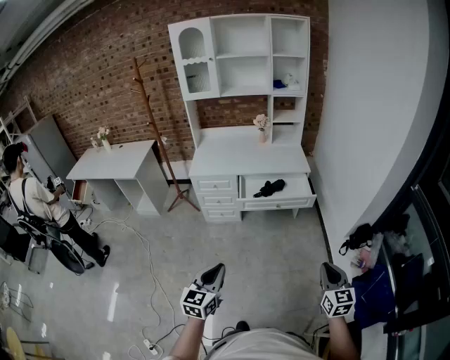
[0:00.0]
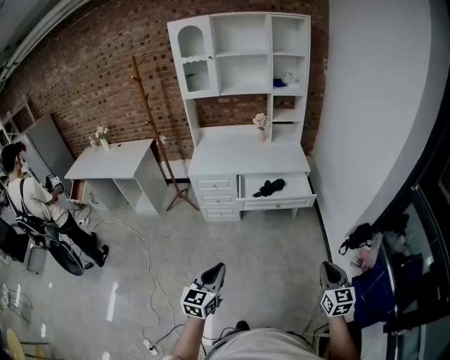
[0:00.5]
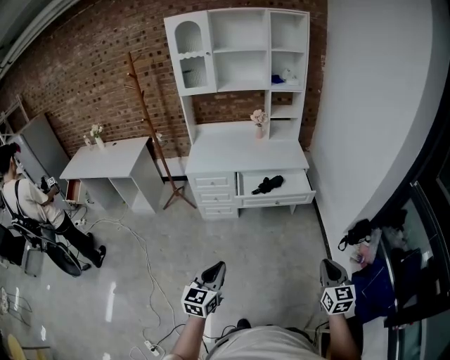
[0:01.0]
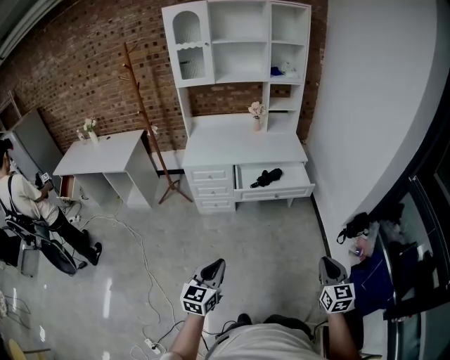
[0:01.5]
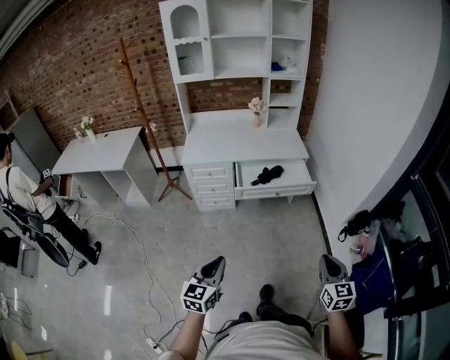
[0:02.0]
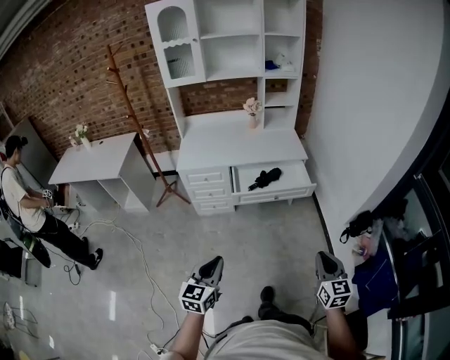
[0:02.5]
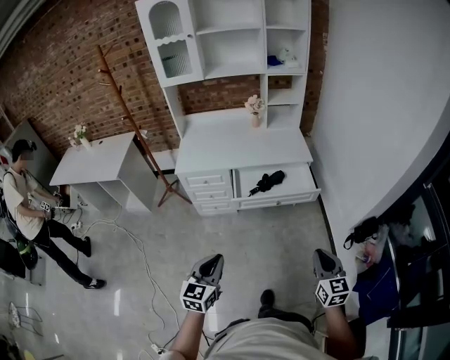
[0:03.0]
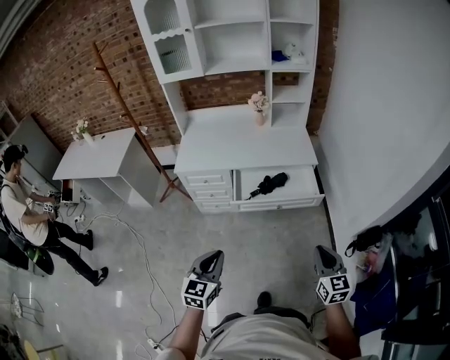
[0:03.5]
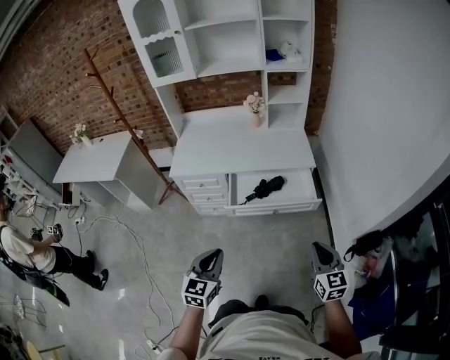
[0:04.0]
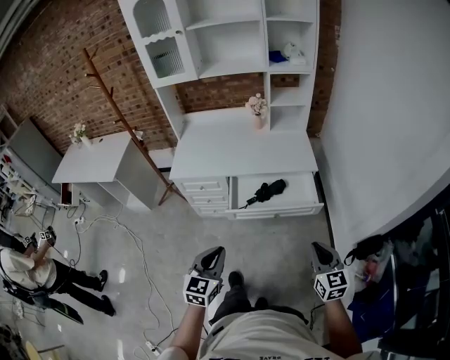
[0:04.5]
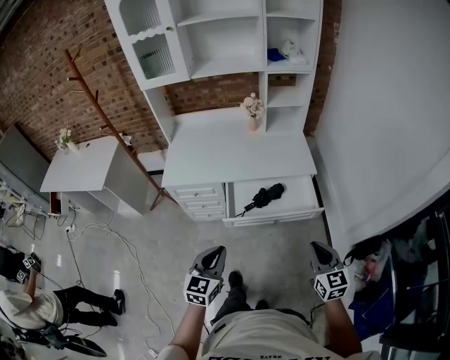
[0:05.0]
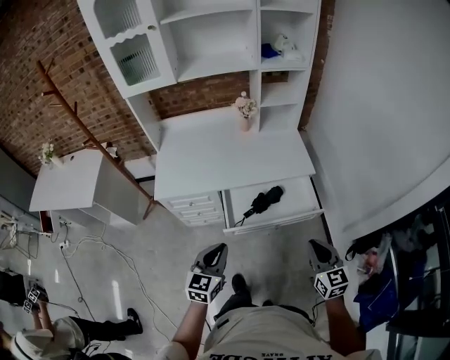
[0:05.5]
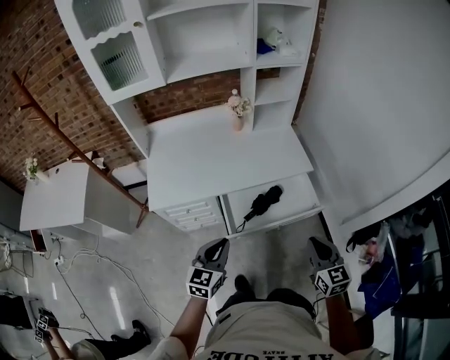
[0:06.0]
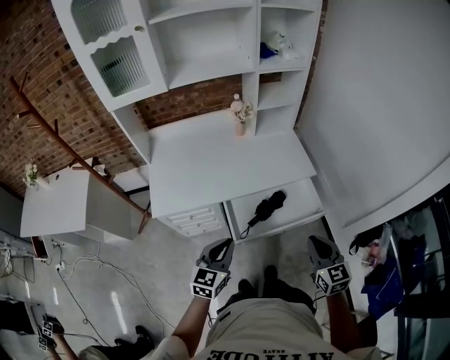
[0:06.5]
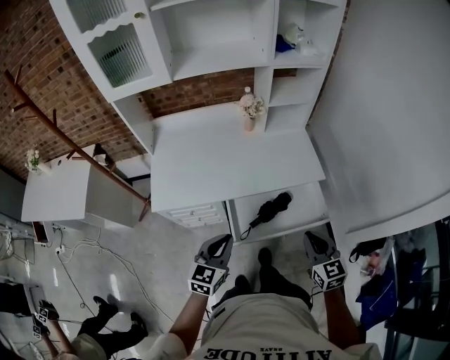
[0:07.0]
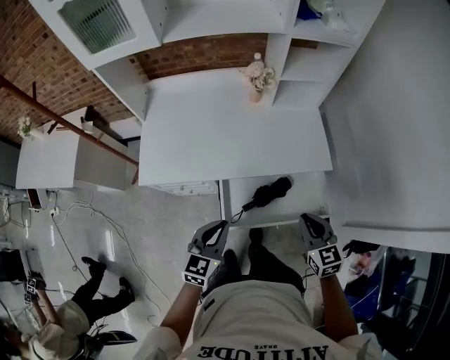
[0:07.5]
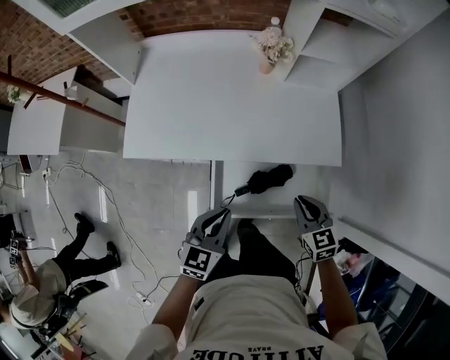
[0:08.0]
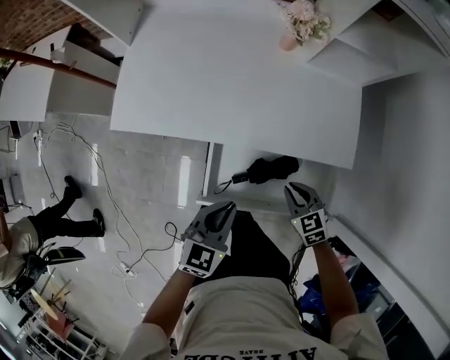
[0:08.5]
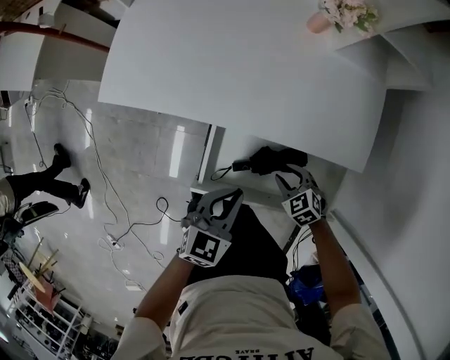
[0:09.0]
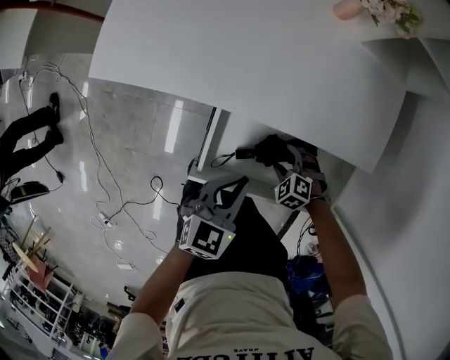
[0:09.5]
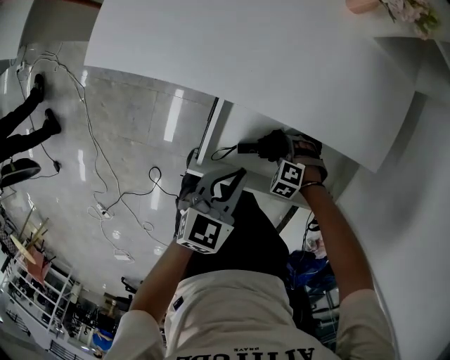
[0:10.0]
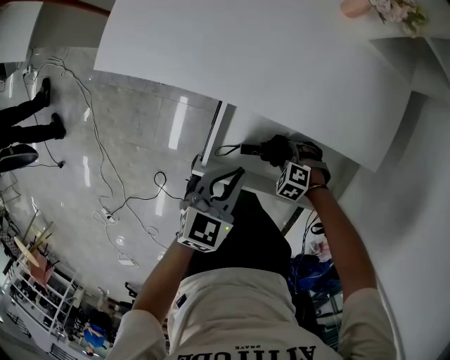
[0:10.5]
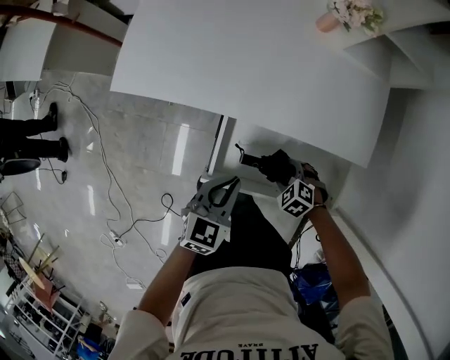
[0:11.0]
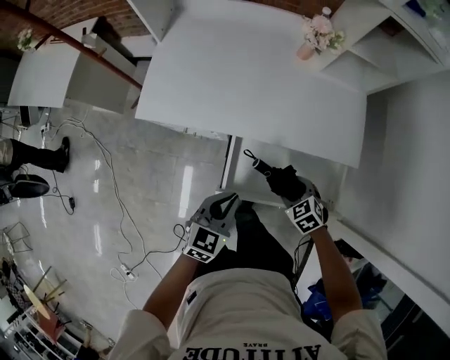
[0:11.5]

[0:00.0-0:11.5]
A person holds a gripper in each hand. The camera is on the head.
0:00.0 to 0:02.0: The two grippers go approximately 5 cm to the left.
0:02.0 to 0:04.0: Both grippers move forward, about 25 cm.
0:04.0 to 0:06.0: The right gripper shifts roughly 20 cm forward and to the left. Meanwhile the left gripper goes some 25 cm forward.
0:06.0 to 0:07.5: The right gripper is displaced forward by some 20 cm, while the left gripper shifts roughly 10 cm forward.
0:07.5 to 0:09.5: The left gripper travels downward by approximately 20 cm. The right gripper shifts some 40 cm downward, angles its fingers downward, by some 40 degrees, and opens up.
0:09.5 to 0:11.5: The left gripper shifts by some 15 cm, while the right gripper goes about 20 cm upward, and rotates roughly 30 degrees.

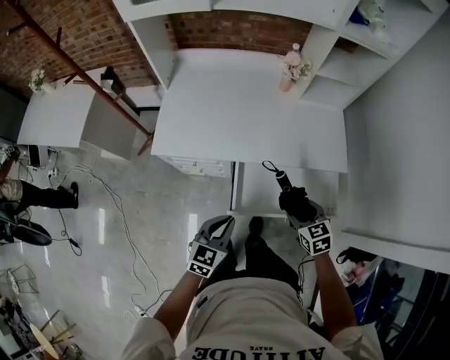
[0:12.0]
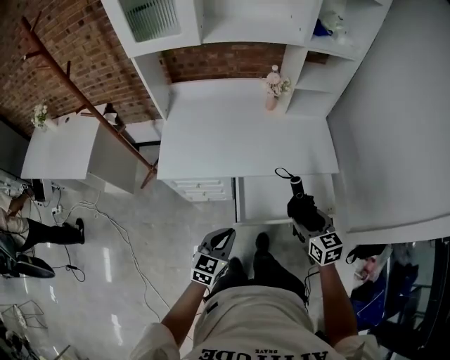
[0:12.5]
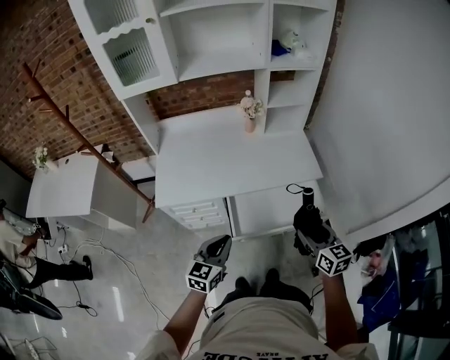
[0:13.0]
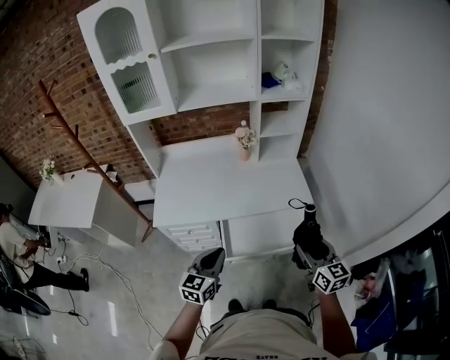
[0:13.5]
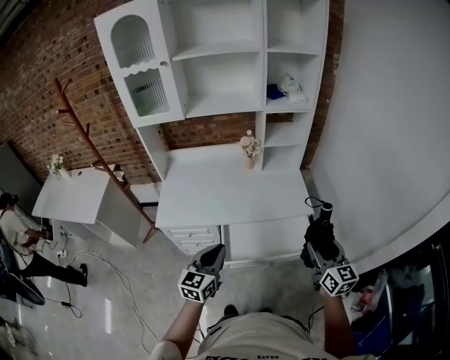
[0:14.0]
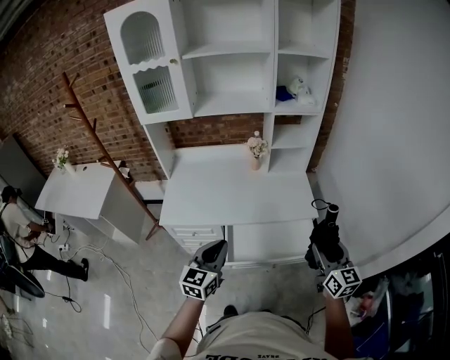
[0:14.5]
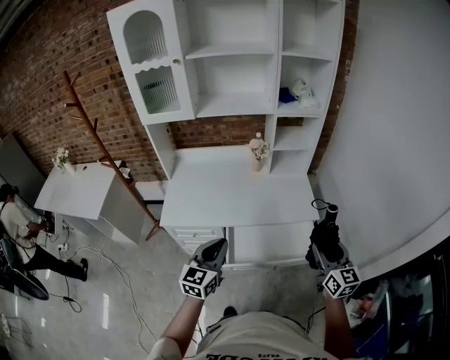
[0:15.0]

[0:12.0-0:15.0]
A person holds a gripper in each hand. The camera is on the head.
0:12.0 to 0:13.5: The left gripper goes some 15 cm upward. Meanwhile the right gripper heads upward, to the right and backward, covering approximately 25 cm, and points its fingers about 30 degrees further upward.
0:13.5 to 0:15.0: The grippers both shift upward by roughly 5 cm.

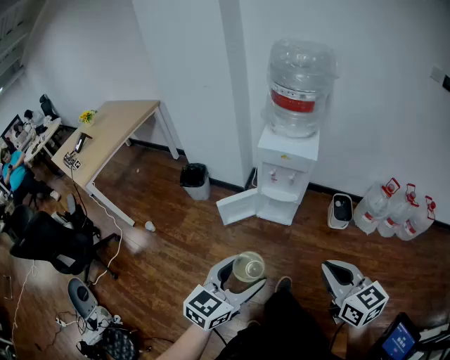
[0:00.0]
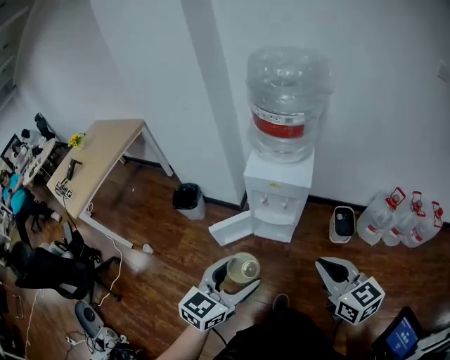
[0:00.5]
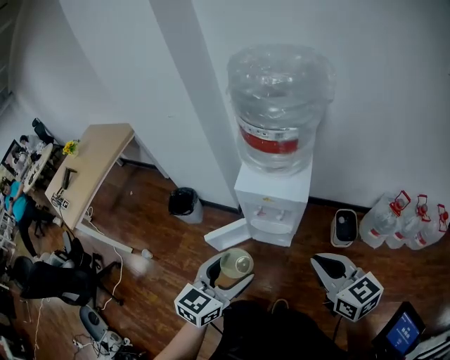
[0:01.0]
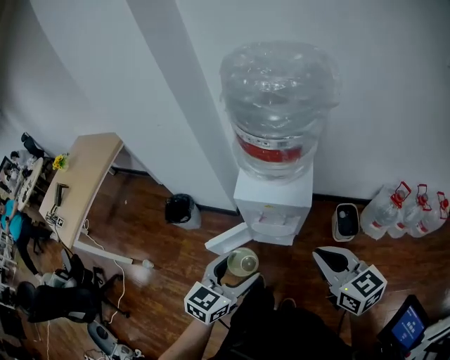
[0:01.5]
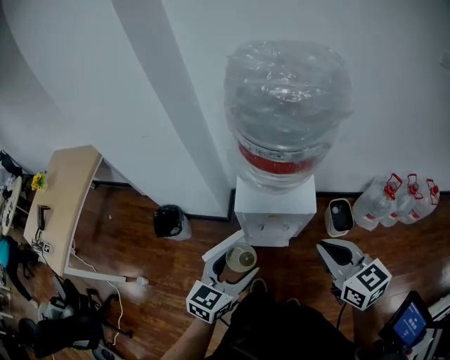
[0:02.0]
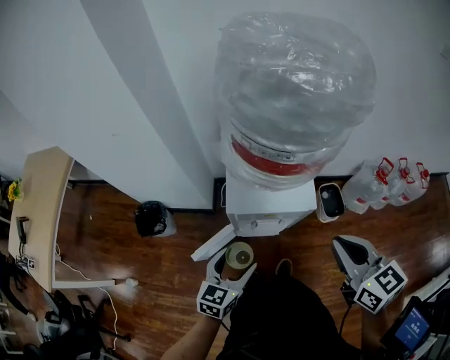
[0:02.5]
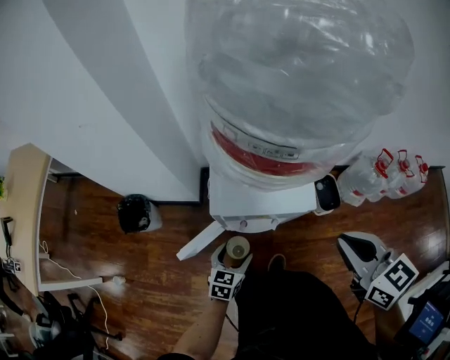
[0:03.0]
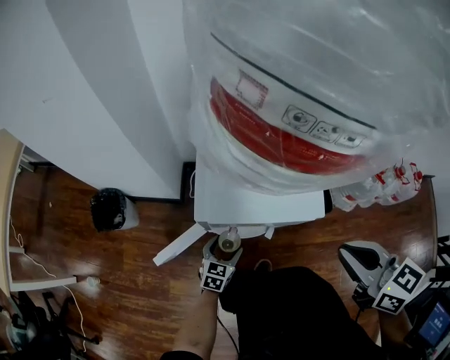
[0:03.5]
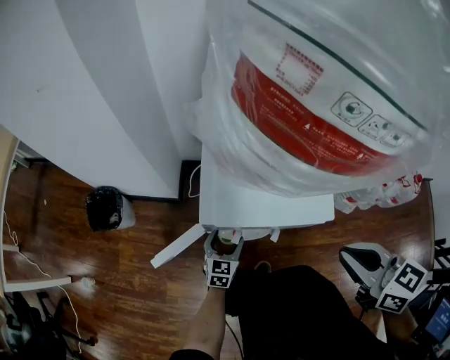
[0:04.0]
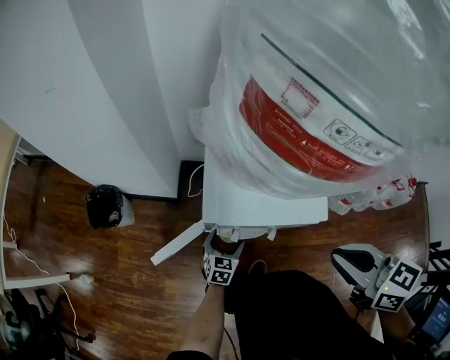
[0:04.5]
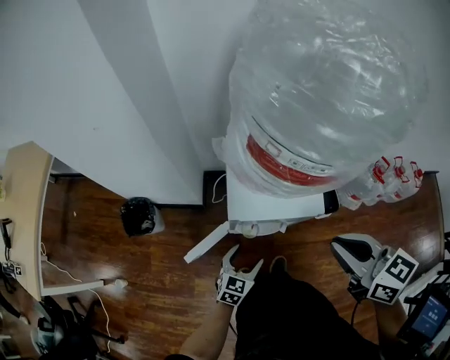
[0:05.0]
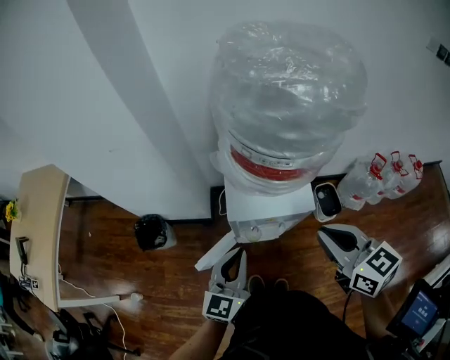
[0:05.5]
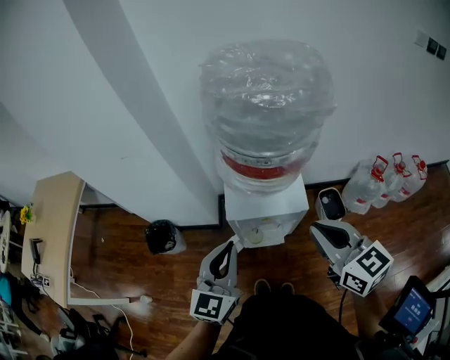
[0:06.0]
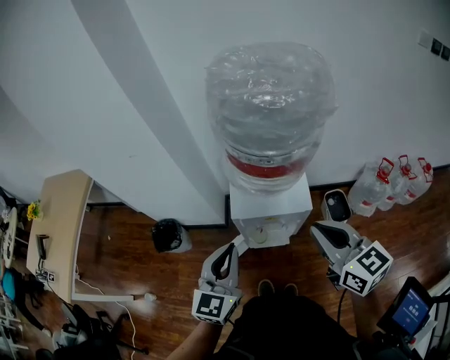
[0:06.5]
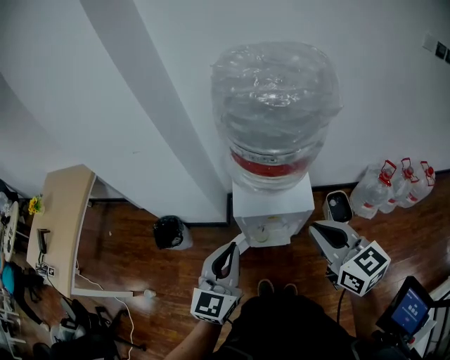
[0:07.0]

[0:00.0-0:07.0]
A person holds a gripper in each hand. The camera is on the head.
0:00.0 to 0:02.0: The two grippers travel together, forward, approximately 40 cm.
0:02.0 to 0:03.5: The left gripper moves downward, approximately 40 cm, while the right gripper goes about 15 cm downward and forward.
0:03.5 to 0:05.0: The left gripper is displaced upward by approximately 15 cm, while the right gripper goes some 10 cm upward and to the left.
0:05.0 to 0:07.0: The left gripper goes approximately 35 cm upward, swivels roughly 30 degrees, and closes up, while the right gripper moves upward, about 5 cm.

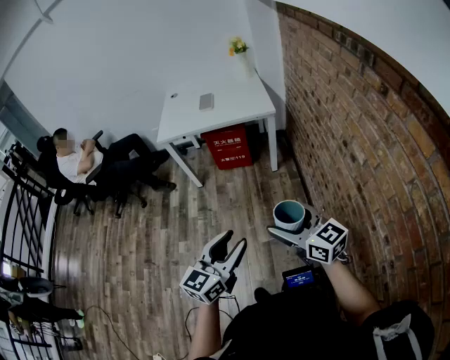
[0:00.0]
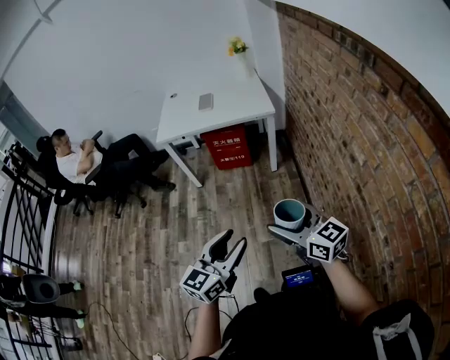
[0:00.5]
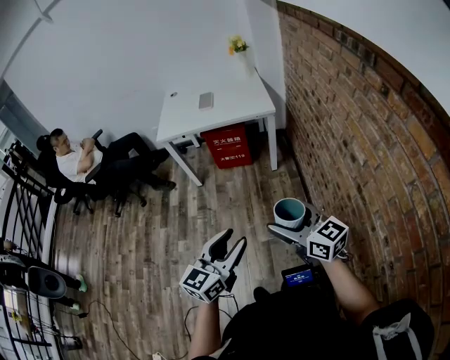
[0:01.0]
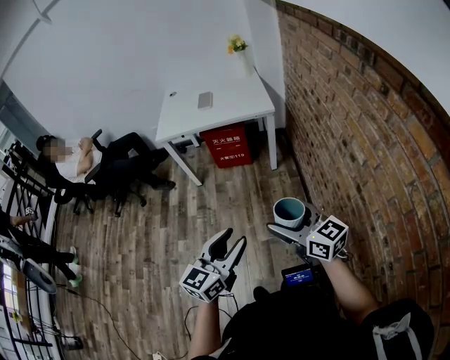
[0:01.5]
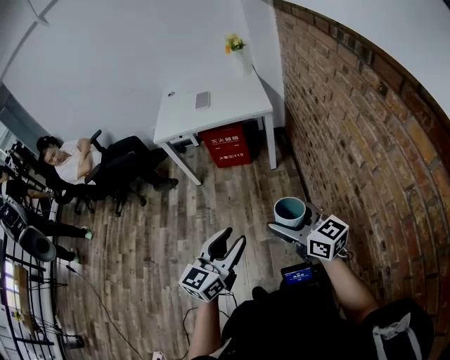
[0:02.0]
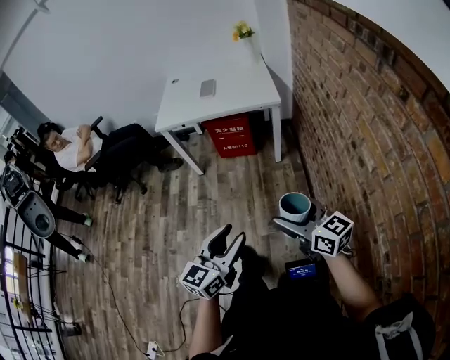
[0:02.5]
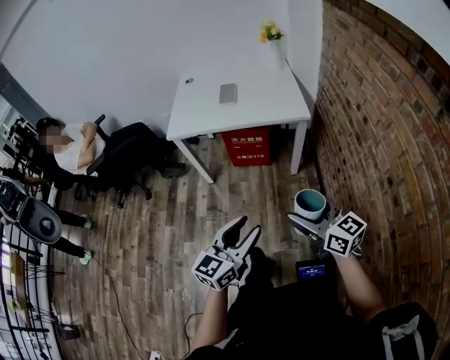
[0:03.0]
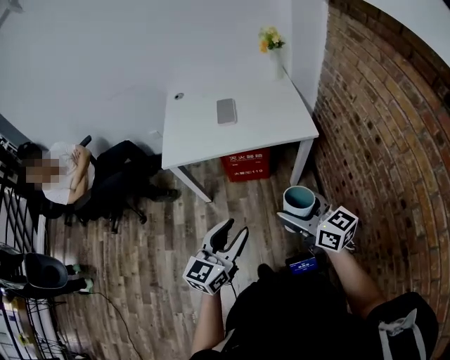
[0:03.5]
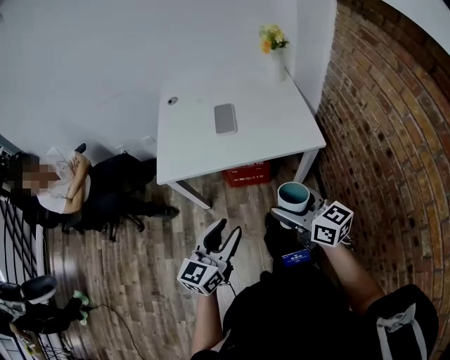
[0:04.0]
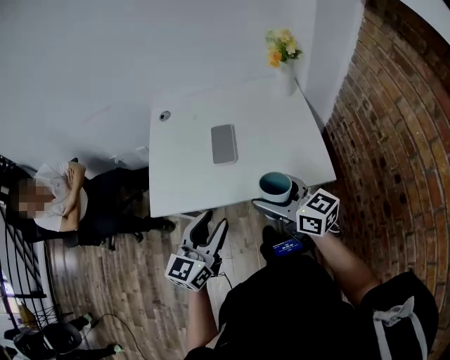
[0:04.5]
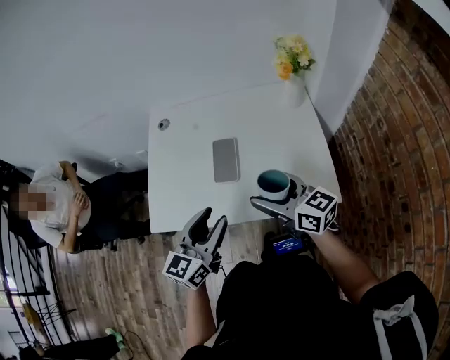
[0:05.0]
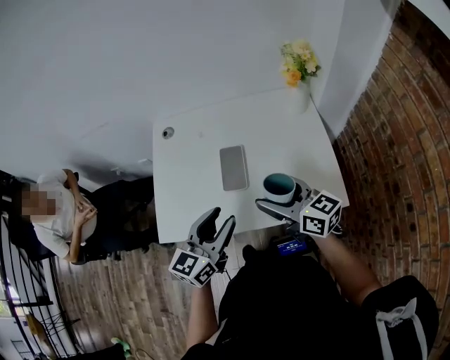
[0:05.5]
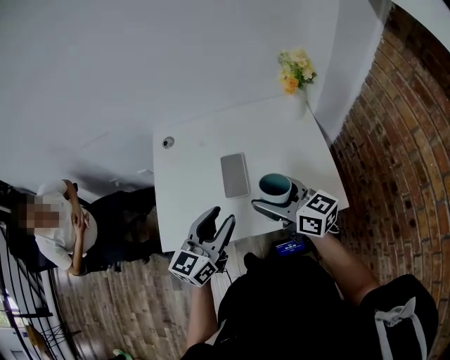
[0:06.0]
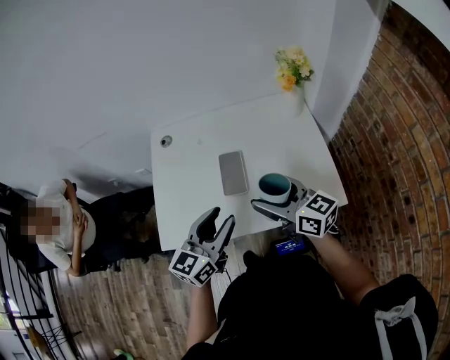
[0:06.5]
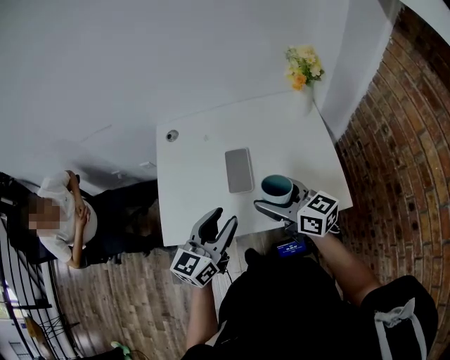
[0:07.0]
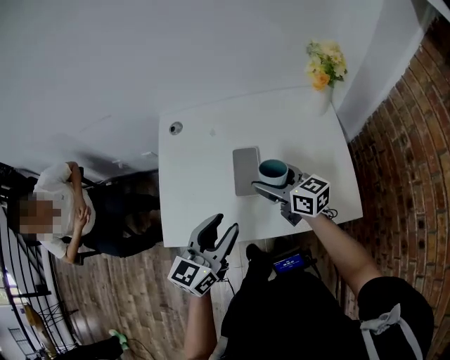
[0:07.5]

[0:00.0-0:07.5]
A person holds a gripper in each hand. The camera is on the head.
0:00.0 to 0:02.0: The grippers stay close to where they were, moving slightly.
0:02.0 to 0:04.0: Both grippers are carried forward, some 50 cm.
0:04.0 to 0:05.5: Both grippers move forward, about 35 cm.
0:05.5 to 0:07.5: The right gripper moves forward and downward, approximately 15 cm.
